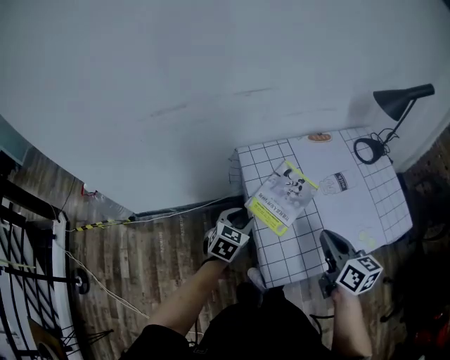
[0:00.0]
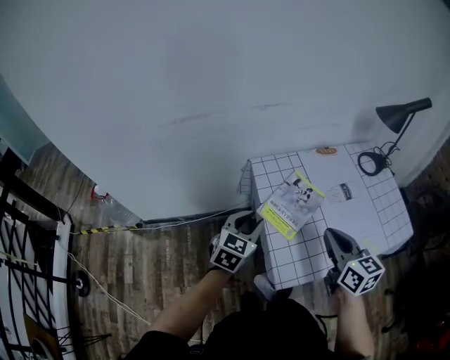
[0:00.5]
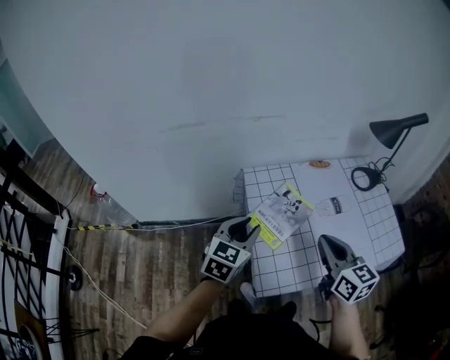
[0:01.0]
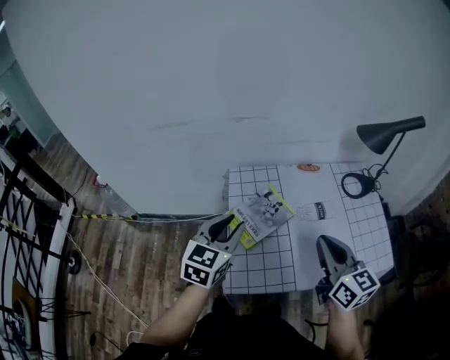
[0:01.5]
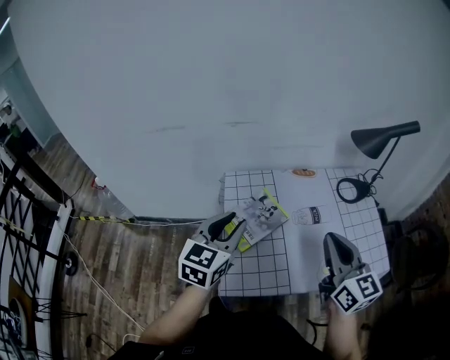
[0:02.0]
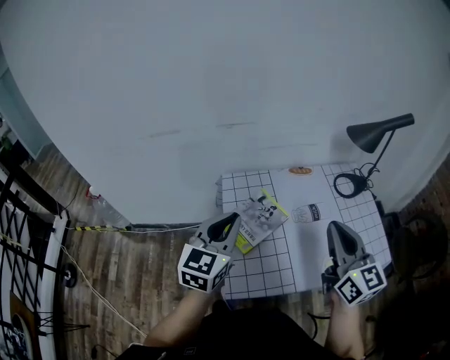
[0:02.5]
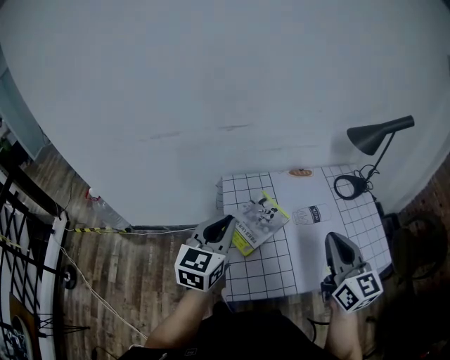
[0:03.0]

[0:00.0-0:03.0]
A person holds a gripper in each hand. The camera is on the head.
0:00.0 to 0:01.5: The right gripper goes about 15 cm upward and to the right, and turns by some 20 degrees. Meanwhile the left gripper travels upward and to the right by roughly 25 cm, and turns by about 20 degrees.
0:01.5 to 0:03.0: The left gripper closes.

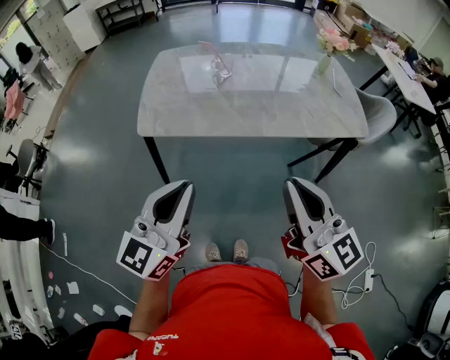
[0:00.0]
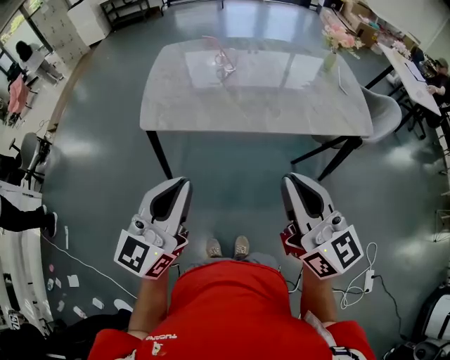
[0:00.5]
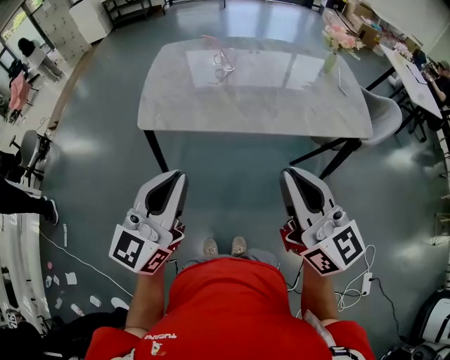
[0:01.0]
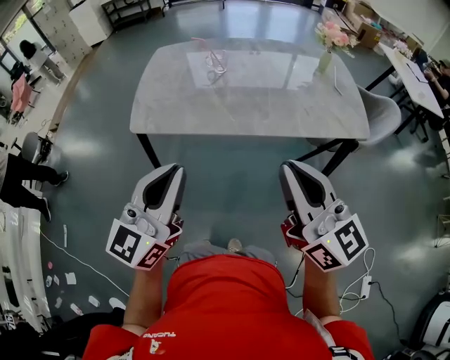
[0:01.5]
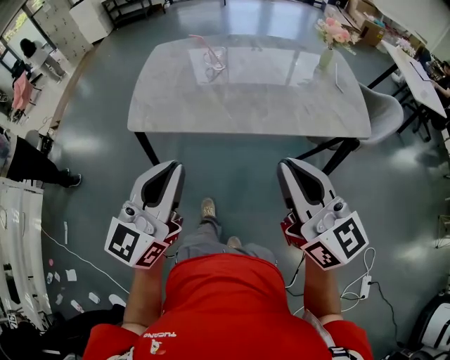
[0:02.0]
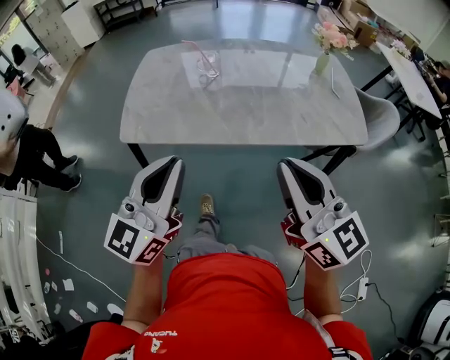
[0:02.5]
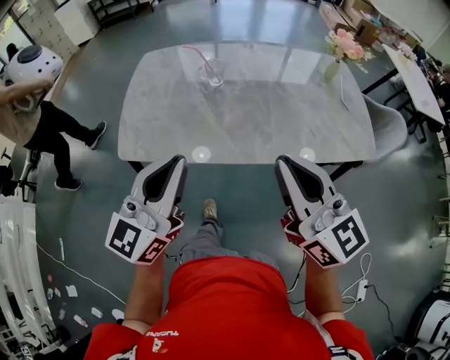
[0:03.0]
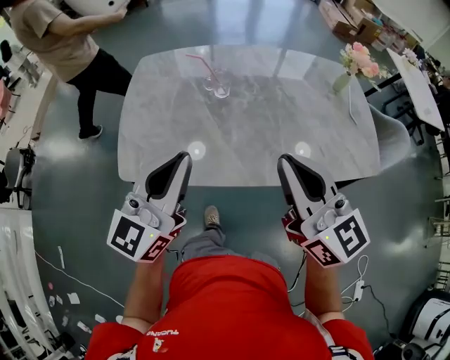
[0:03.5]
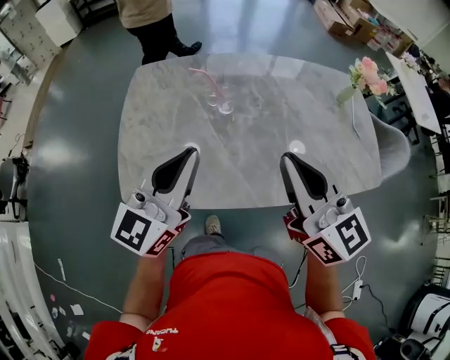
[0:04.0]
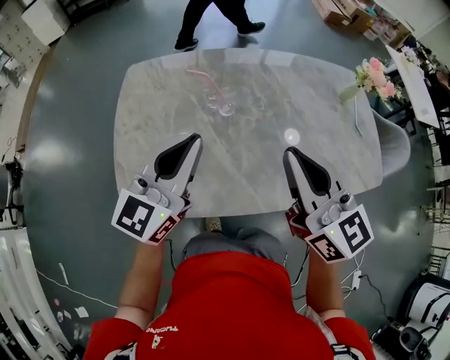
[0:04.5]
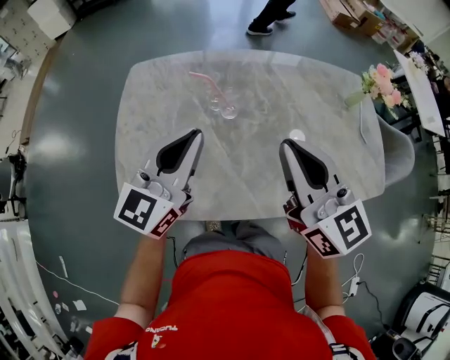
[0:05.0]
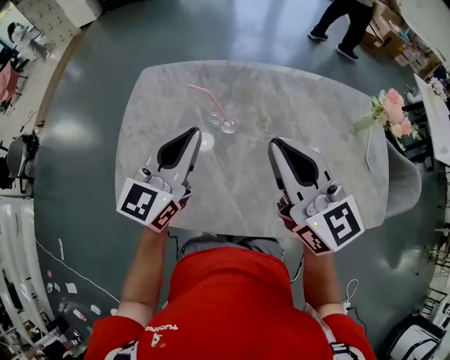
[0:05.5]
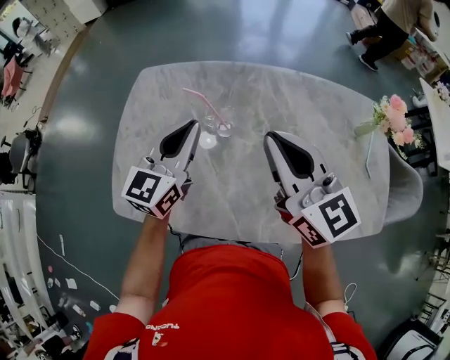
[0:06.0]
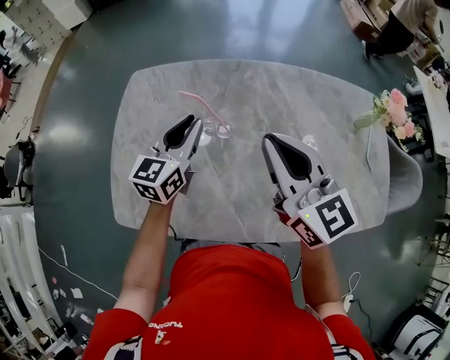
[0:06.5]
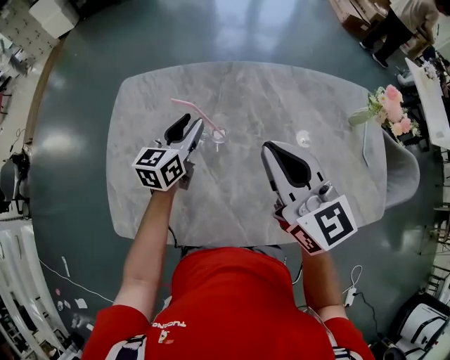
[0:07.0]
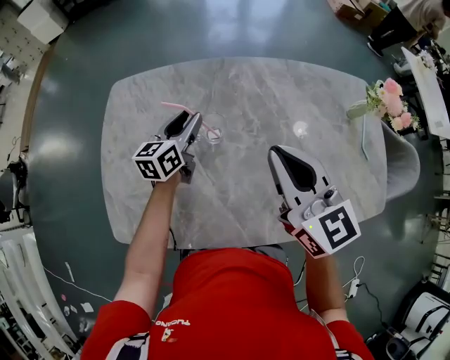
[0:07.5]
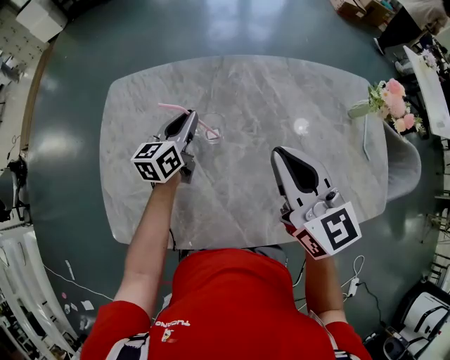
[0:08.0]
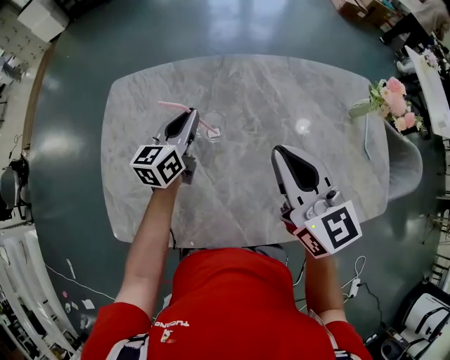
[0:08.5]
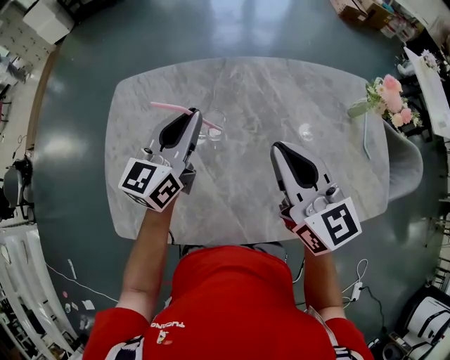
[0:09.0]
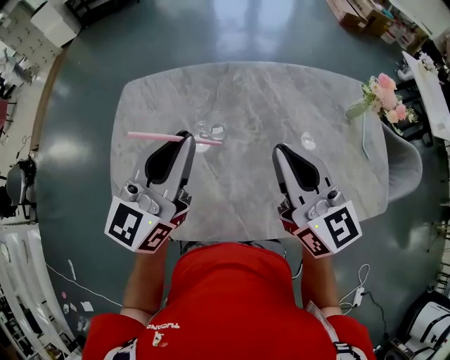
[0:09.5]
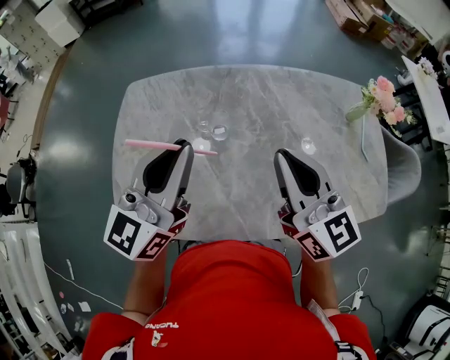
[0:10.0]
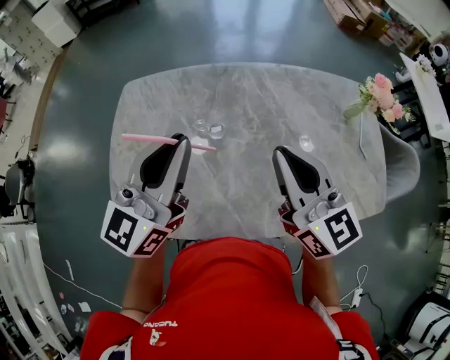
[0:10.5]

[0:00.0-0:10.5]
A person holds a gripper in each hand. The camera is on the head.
0:00.0 to 0:02.0: Both grippers move to the right, roughly 5 cm.
0:02.0 to 0:04.0: Both grippers move forward, approximately 30 cm.
0:04.0 to 0:06.5: The left gripper heads forward and downward, covering roughly 25 cm, and rotates roughly 20 degrees, while the right gripper heads forward, covering some 20 cm.
0:06.5 to 0:08.5: The left gripper shifts roughly 10 cm forward and downward, and opens, then closes once more. The right gripper ends up about 5 cm from where it was.
0:08.5 to 0:10.5: The left gripper goes approximately 25 cm upward and backward, and swivels about 30 degrees; the right gripper shifts about 5 cm backward.

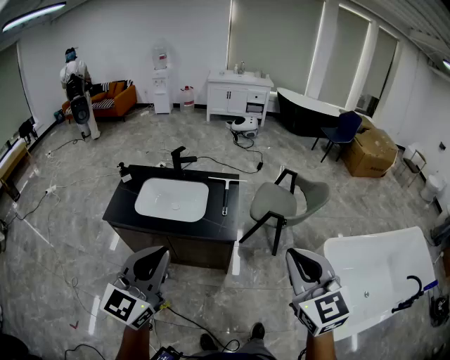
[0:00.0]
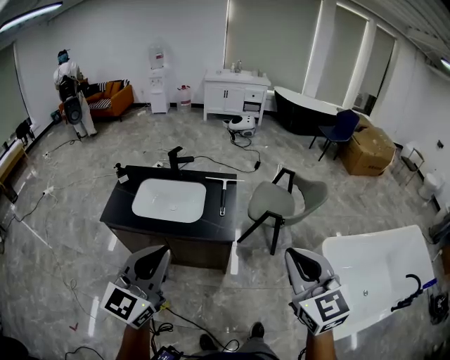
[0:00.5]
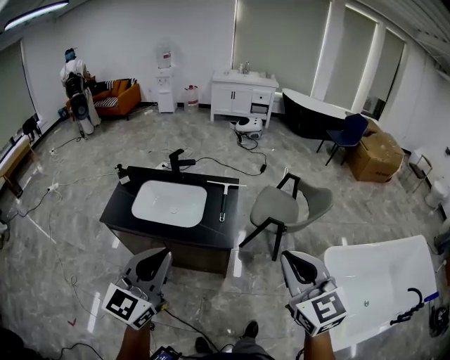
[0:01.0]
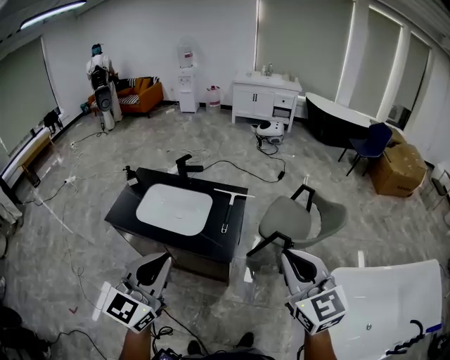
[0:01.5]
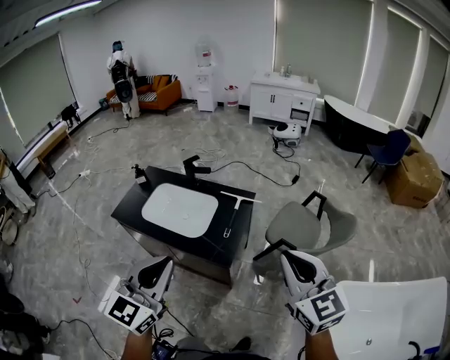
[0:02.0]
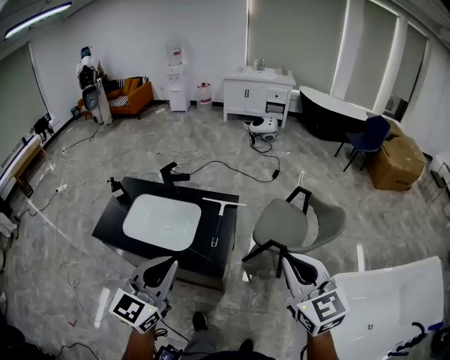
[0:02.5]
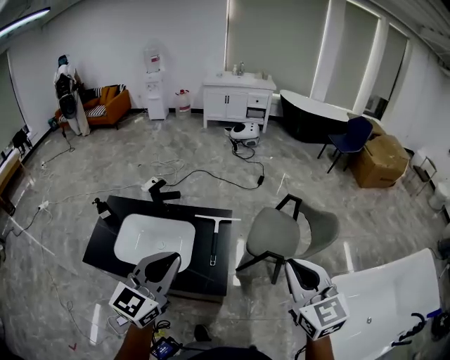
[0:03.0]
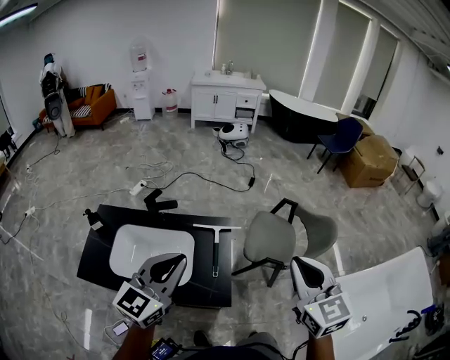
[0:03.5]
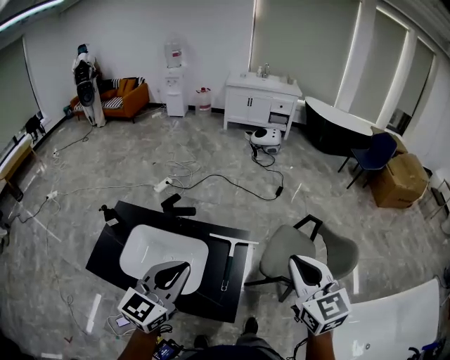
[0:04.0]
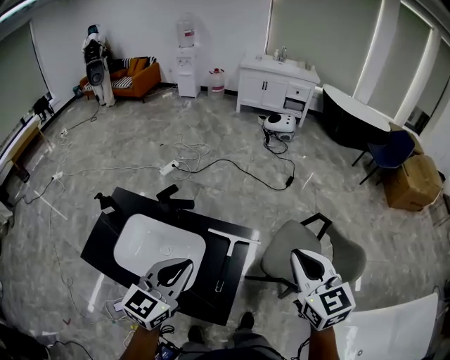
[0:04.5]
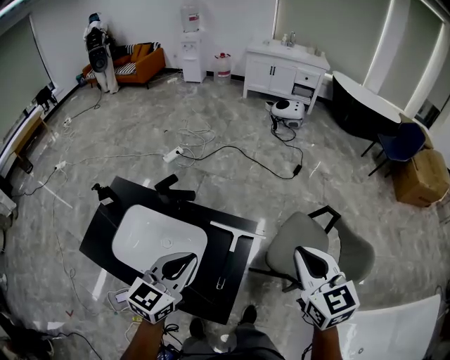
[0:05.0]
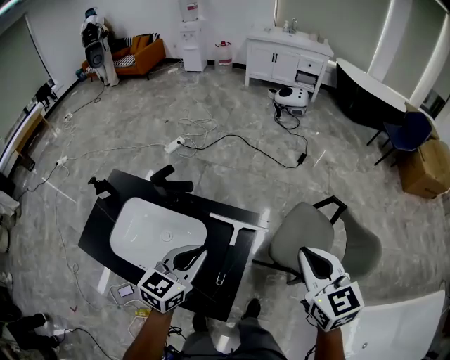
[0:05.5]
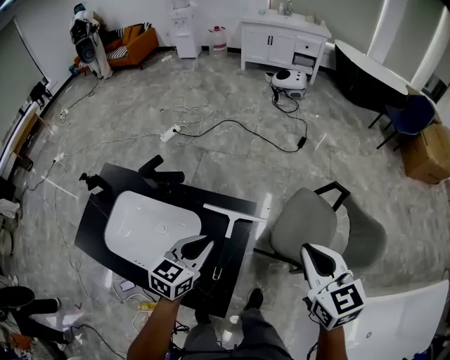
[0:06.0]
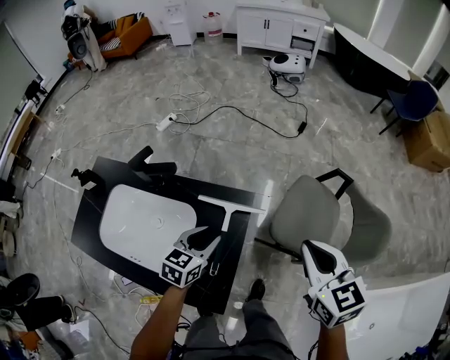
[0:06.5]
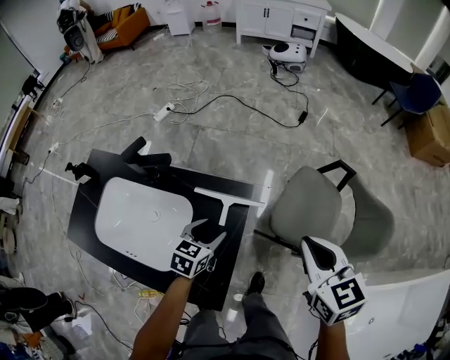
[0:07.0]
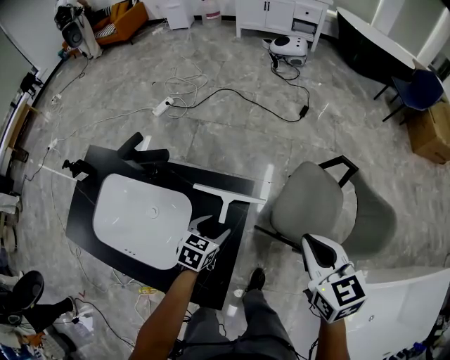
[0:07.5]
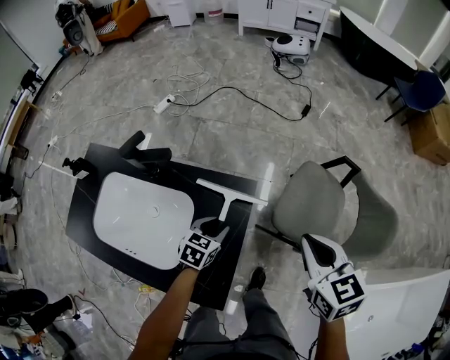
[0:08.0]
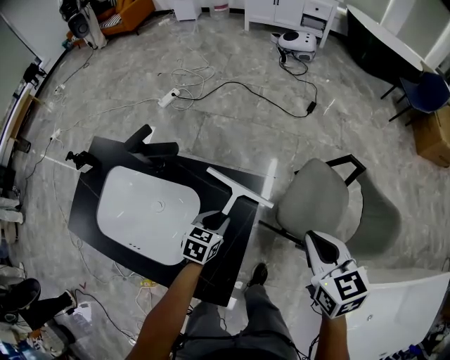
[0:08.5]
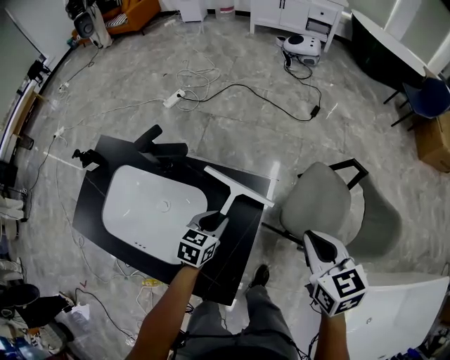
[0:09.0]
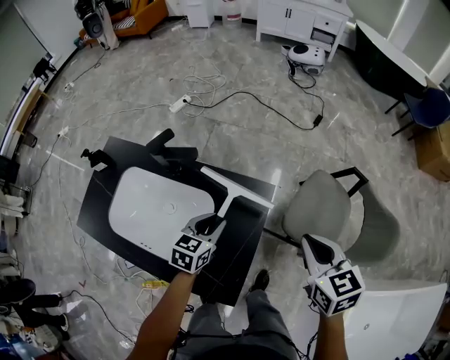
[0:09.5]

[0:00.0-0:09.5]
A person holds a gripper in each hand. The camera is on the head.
0:00.0 to 0:02.0: The right gripper heads forward and to the right, covering approximately 25 cm. The left gripper goes roughly 20 cm to the right and forward.
0:02.0 to 0:04.0: The two grippers go roughly 30 cm forward.
0:04.0 to 0:05.5: Both grippers move downward and forward, approximately 20 cm.
0:05.5 to 0:07.5: The left gripper travels downward by about 25 cm, changes its angle by some 30 degrees, and opens its fingers. The right gripper is displaced downward by roughly 15 cm.
0:07.5 to 0:09.5: The right gripper travels to the left by some 5 cm; the left gripper moves upward and to the left, some 10 cm, and closes up.

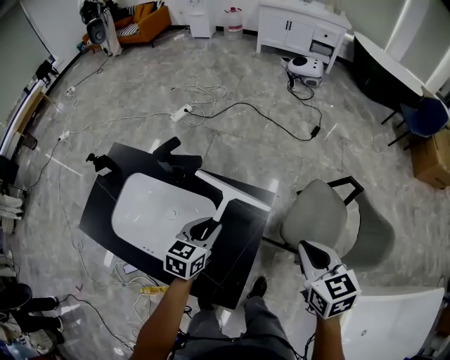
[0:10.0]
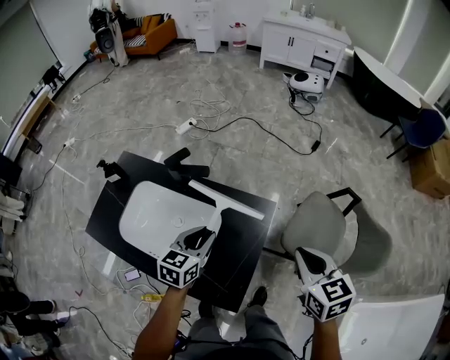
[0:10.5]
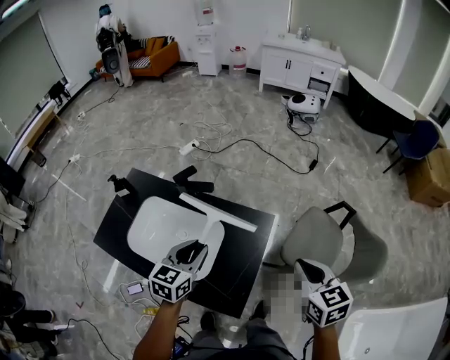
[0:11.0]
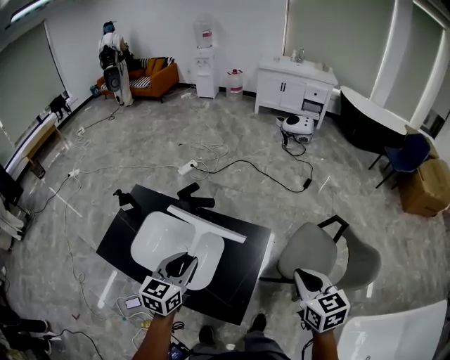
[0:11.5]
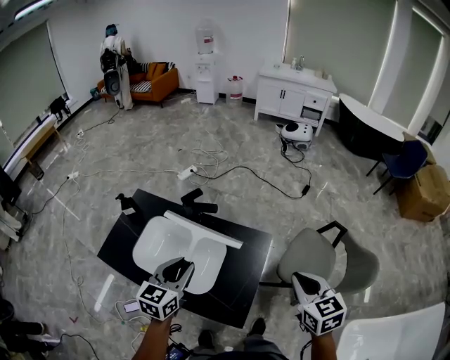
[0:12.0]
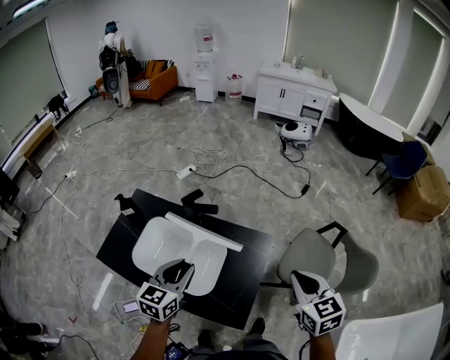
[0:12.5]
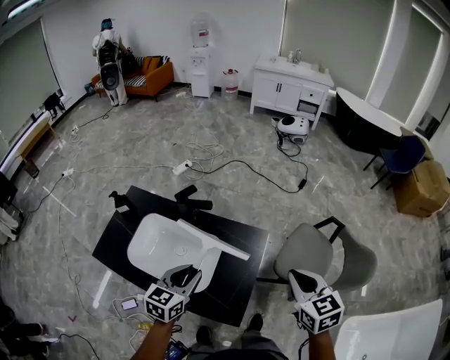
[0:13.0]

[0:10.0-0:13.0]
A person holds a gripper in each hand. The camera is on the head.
0:10.0 to 0:11.5: The right gripper travels upward and backward by about 15 cm. The left gripper heads upward, backward and to the left, covering roughly 20 cm.
0:11.5 to 0:13.0: There are only small adjustments of the grippers.
